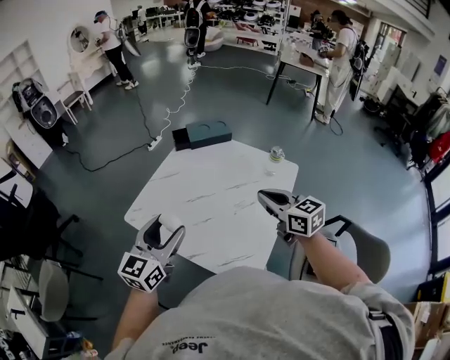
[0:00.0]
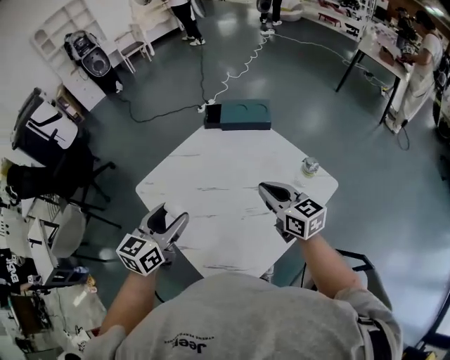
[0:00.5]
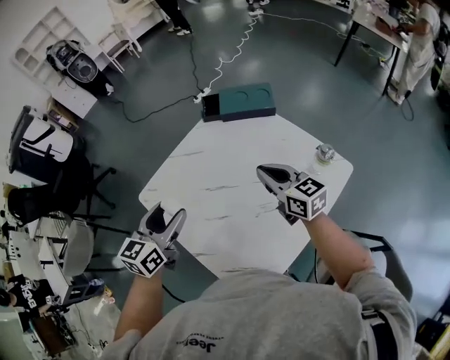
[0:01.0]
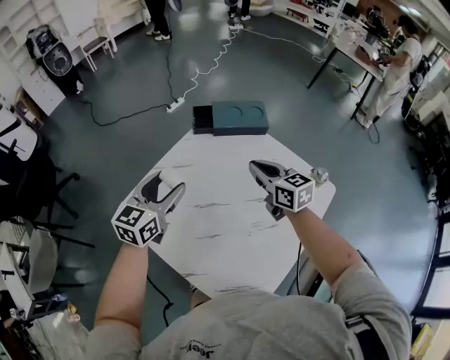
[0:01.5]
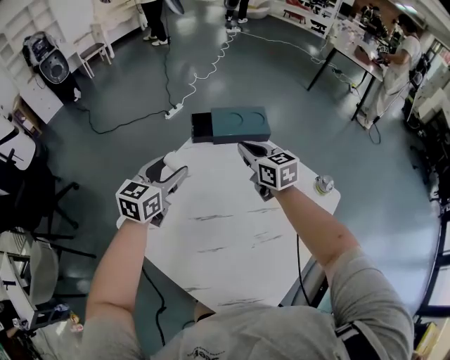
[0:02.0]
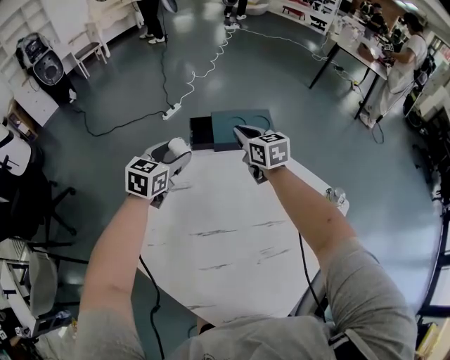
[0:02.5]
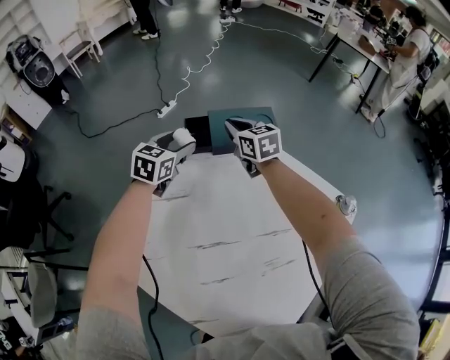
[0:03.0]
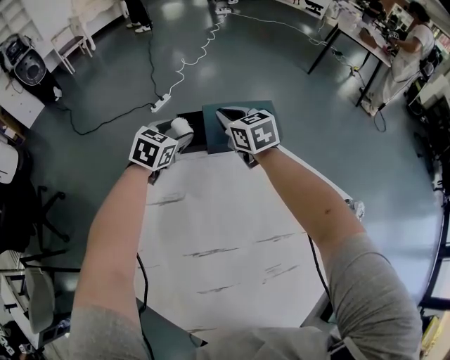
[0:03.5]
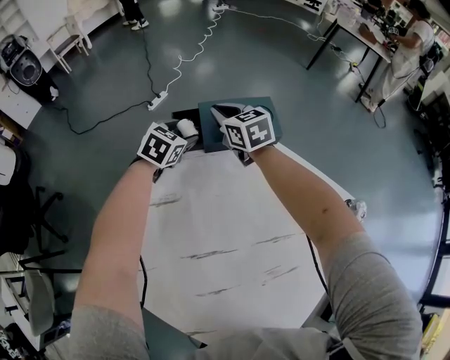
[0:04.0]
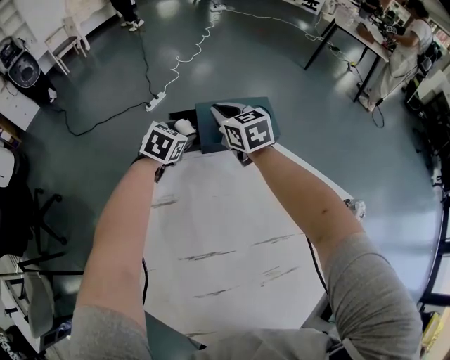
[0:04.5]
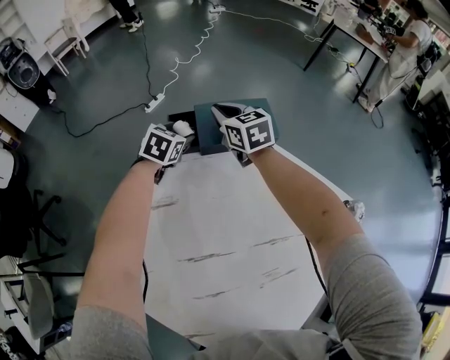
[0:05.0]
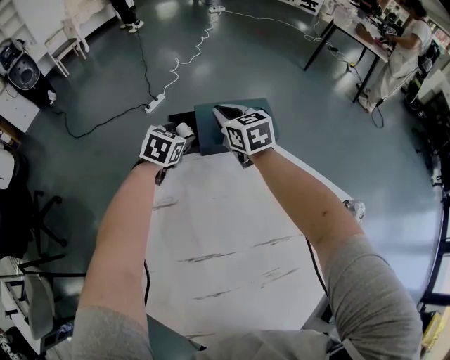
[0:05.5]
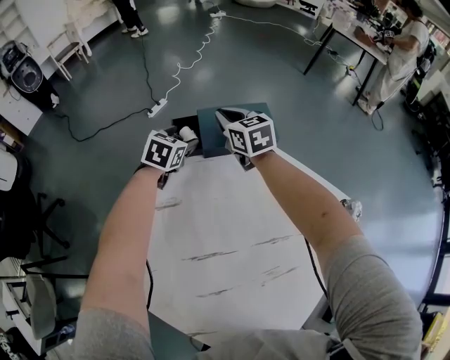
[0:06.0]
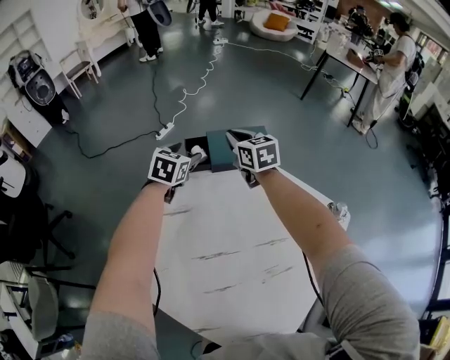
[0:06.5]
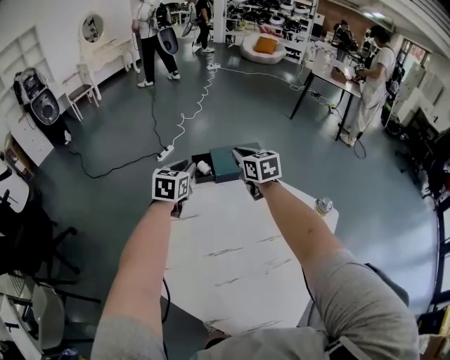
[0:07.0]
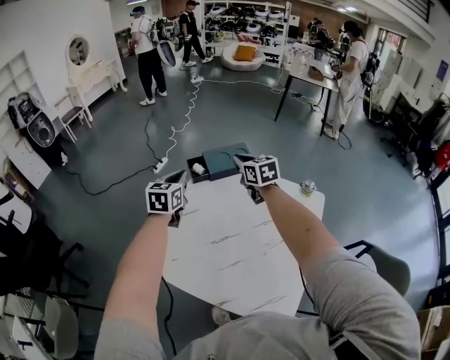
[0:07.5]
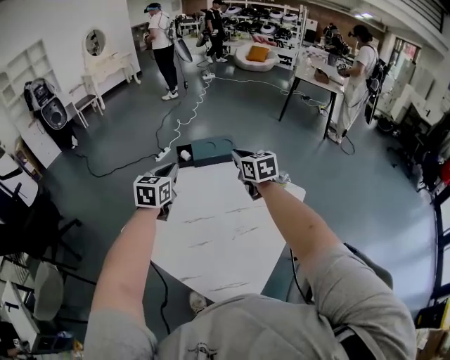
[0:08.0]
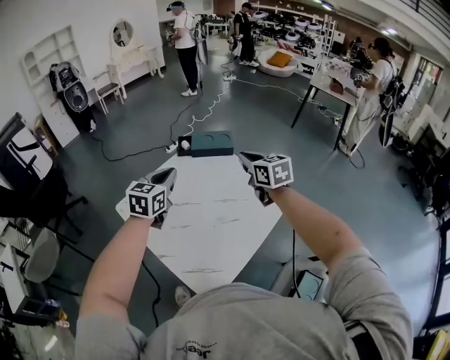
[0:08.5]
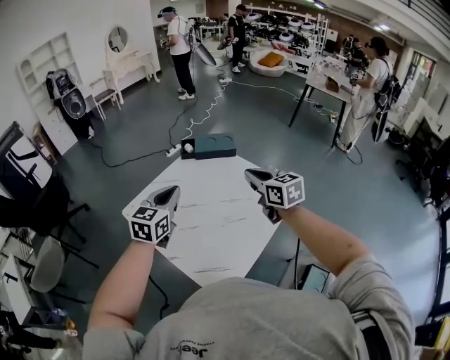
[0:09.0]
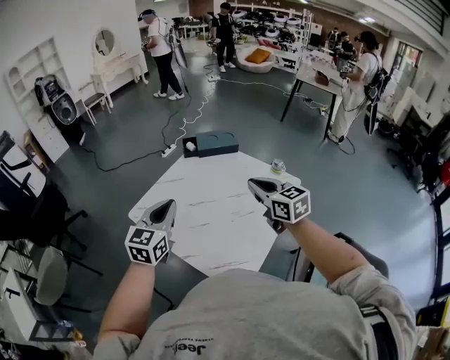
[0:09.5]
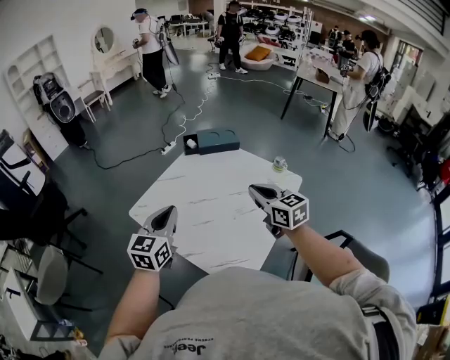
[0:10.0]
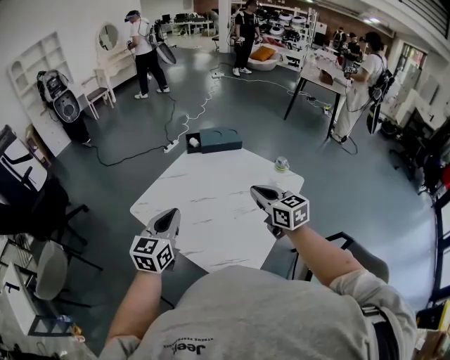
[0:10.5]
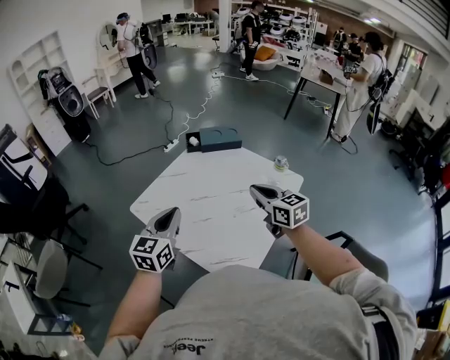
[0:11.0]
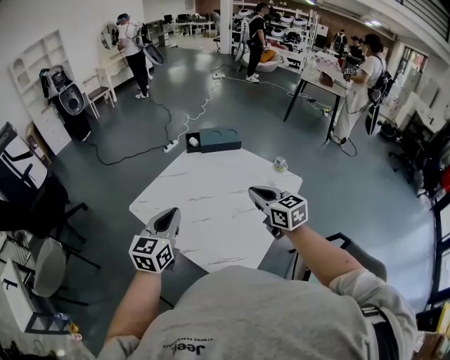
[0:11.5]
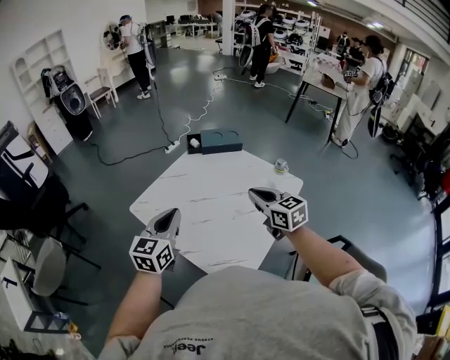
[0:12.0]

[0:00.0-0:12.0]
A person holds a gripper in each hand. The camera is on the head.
0:00.0 to 0:02.0: The two grippers go some 35 cm forward.
0:02.0 to 0:04.0: Both grippers move forward and downward, about 25 cm. The left gripper rotates roughly 30 degrees.
0:04.0 to 0:06.0: The grippers stay close to where they were, moving slightly.
0:06.0 to 0:08.0: The right gripper shifts roughly 35 cm backward, upward and to the right; the left gripper shifts about 40 cm backward and upward, rotates approximately 20 degrees, and closes.
0:08.0 to 0:10.0: The two grippers go roughly 25 cm backward.
0:10.0 to 0:12.0: The grippers make only small movements.

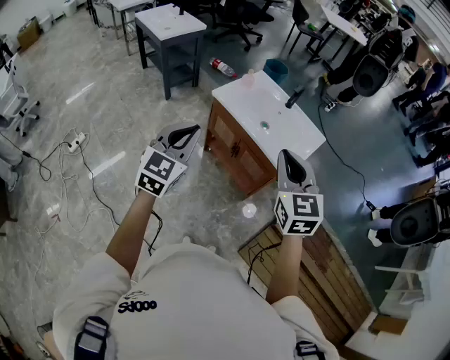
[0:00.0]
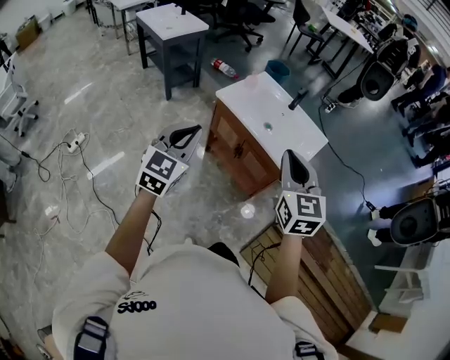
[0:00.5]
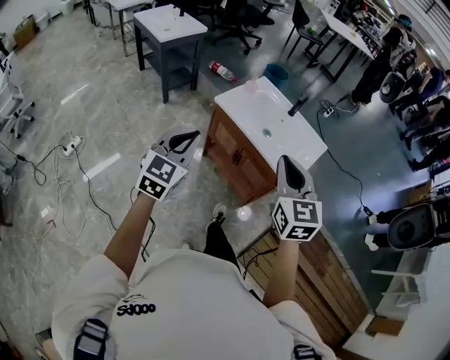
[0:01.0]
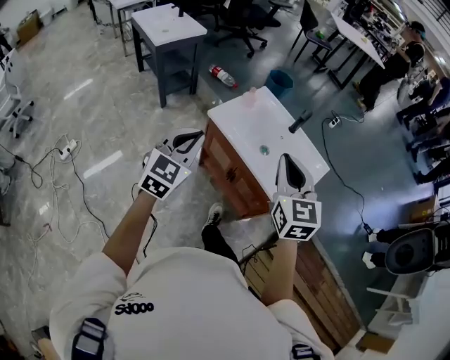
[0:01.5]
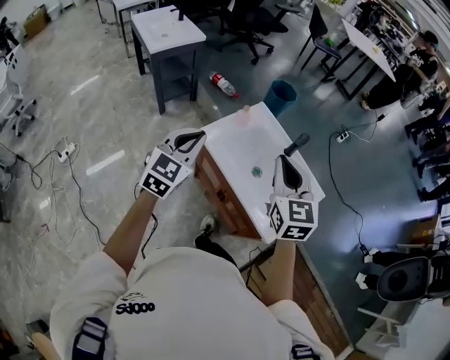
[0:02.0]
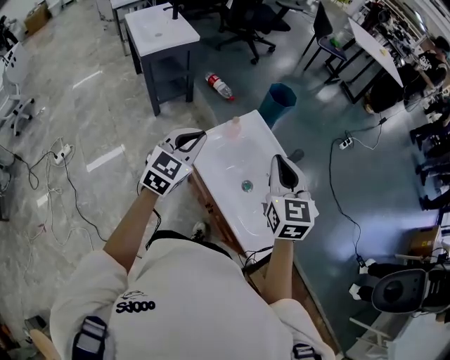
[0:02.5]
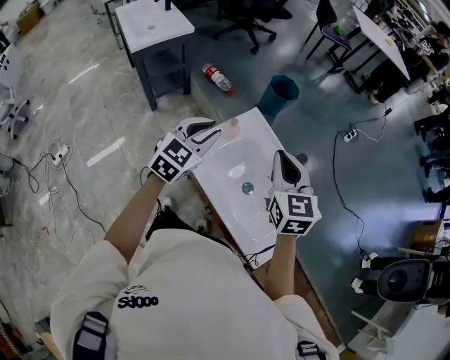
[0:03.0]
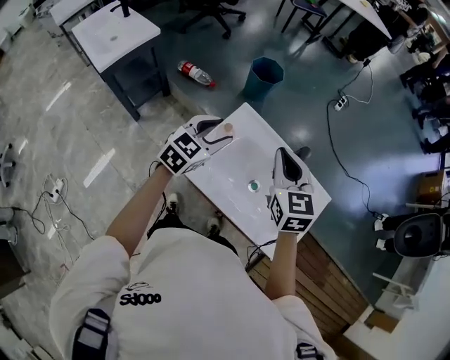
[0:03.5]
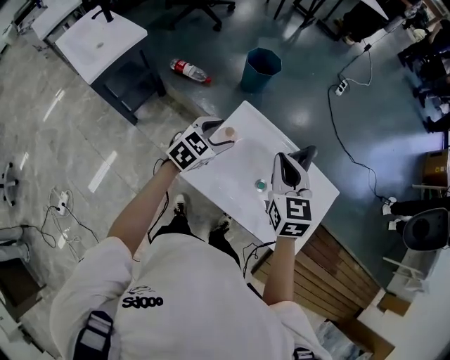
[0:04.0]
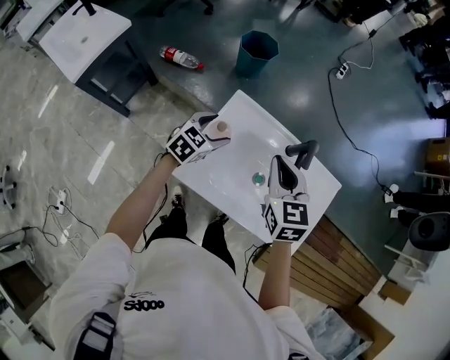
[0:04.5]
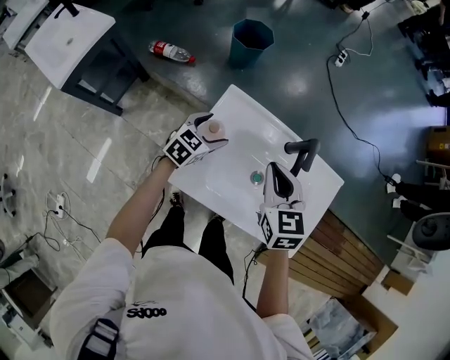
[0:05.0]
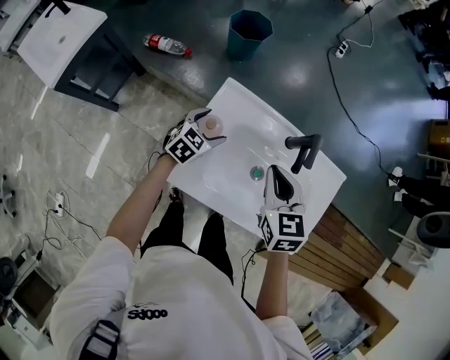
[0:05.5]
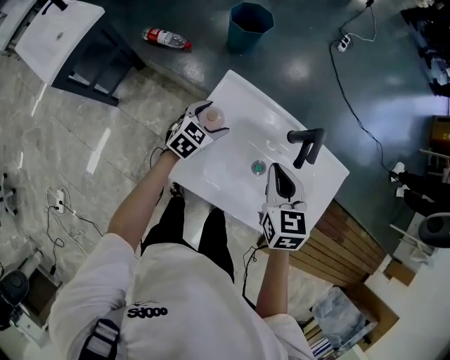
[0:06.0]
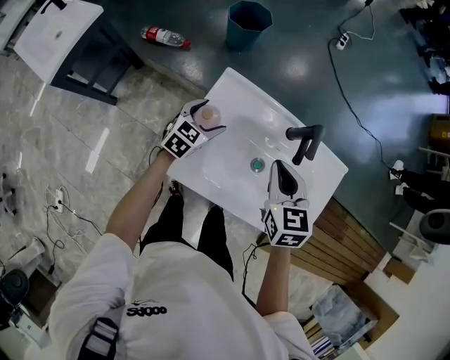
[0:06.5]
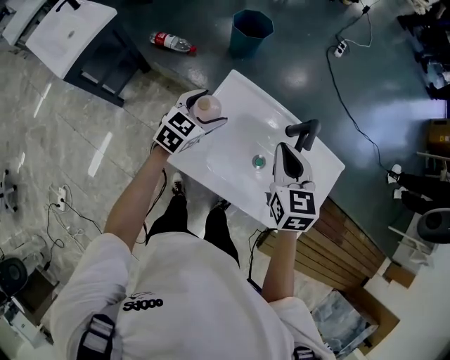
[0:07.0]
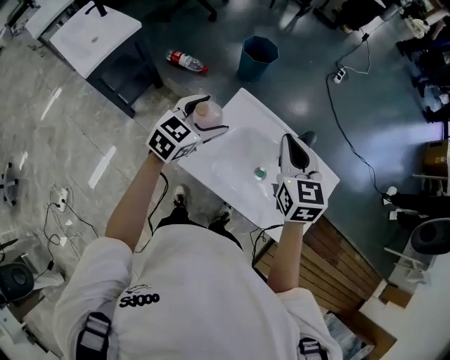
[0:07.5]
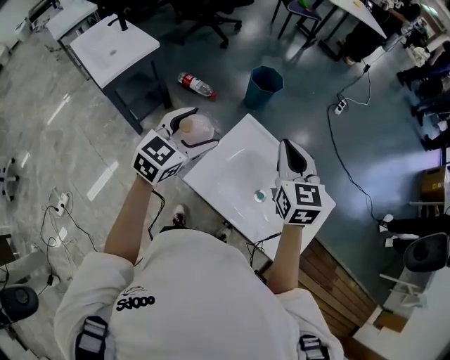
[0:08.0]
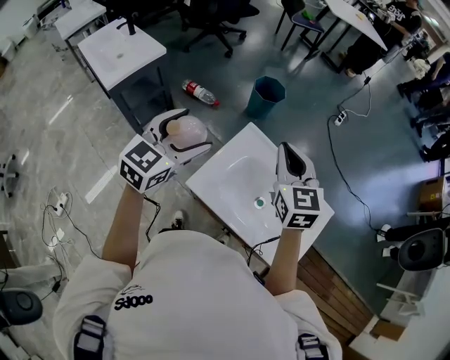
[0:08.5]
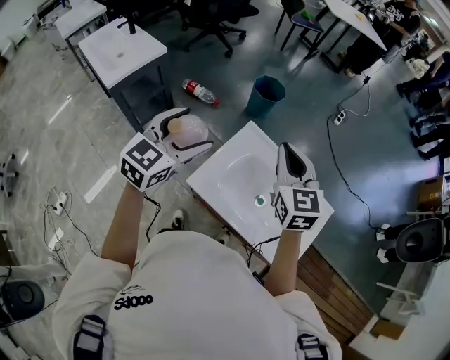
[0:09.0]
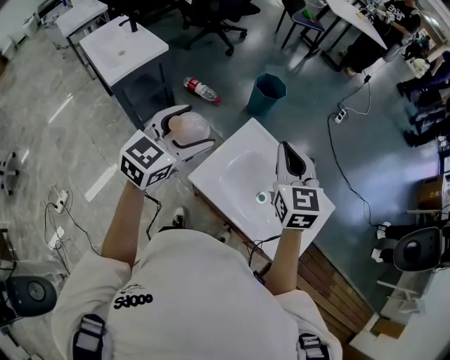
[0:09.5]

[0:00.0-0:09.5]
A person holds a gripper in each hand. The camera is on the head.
0:00.0 to 0:02.0: Both grippers move forward, about 30 cm.
0:02.0 to 0:04.0: The right gripper changes place by approximately 25 cm, and turns by about 20 degrees. Meanwhile the left gripper ends up roughly 35 cm from where it was, rotates roughly 40 degrees, and opens its fingers.
0:04.0 to 0:05.5: The right gripper is displaced downward by about 10 cm. The left gripper is displaced downward by some 15 cm.
0:05.5 to 0:07.5: The left gripper heads upward, covering roughly 20 cm. Meanwhile the right gripper shifts about 10 cm upward.
0:07.5 to 0:09.5: The right gripper goes some 10 cm upward and to the left, while the left gripper moves upward, to the left and backward, roughly 20 cm.

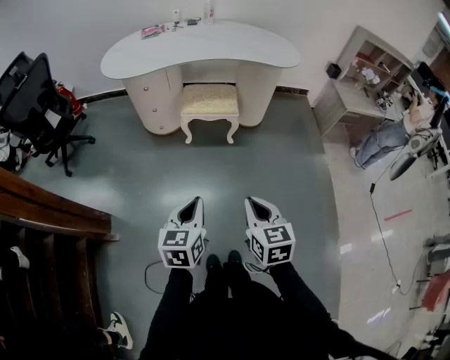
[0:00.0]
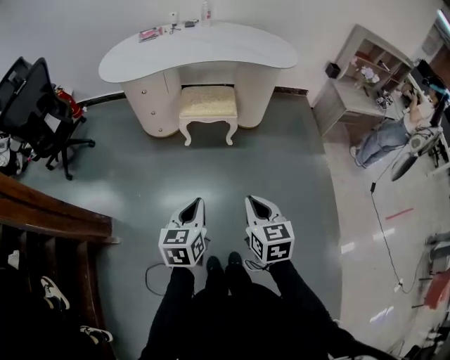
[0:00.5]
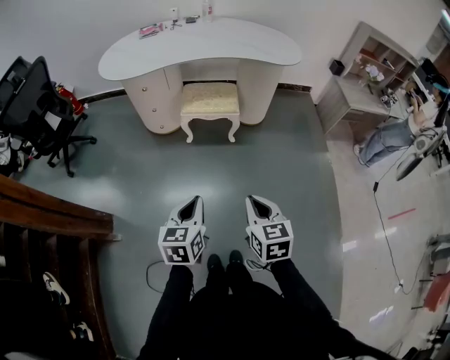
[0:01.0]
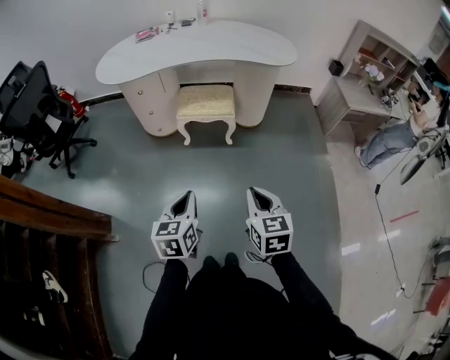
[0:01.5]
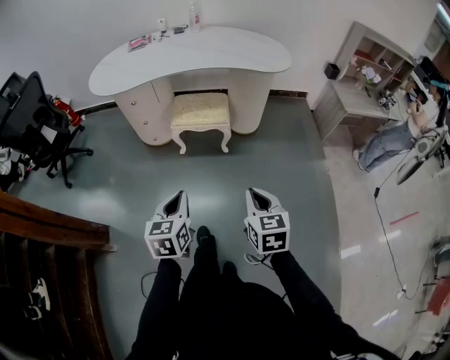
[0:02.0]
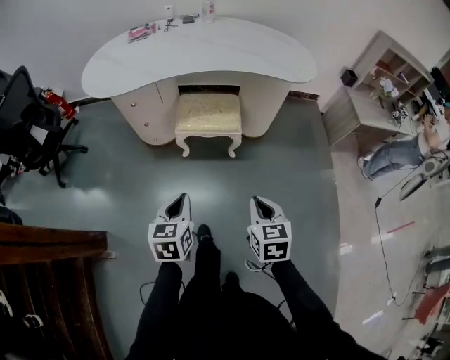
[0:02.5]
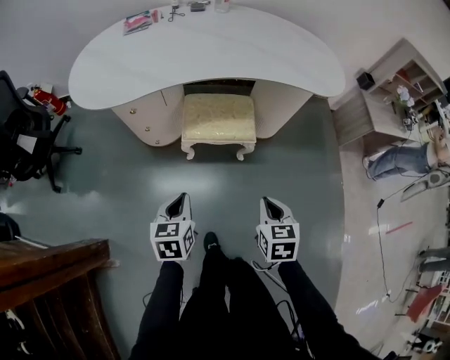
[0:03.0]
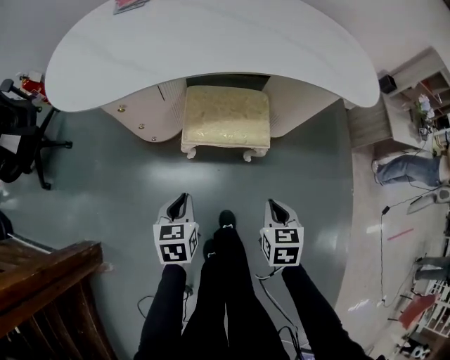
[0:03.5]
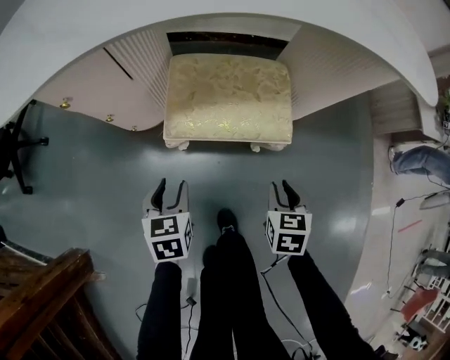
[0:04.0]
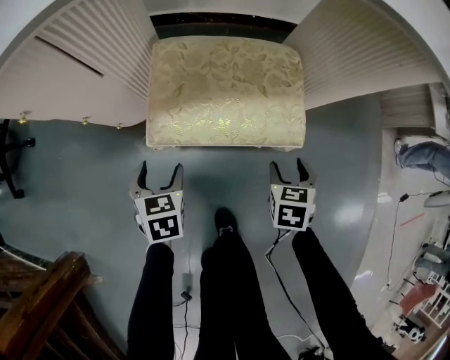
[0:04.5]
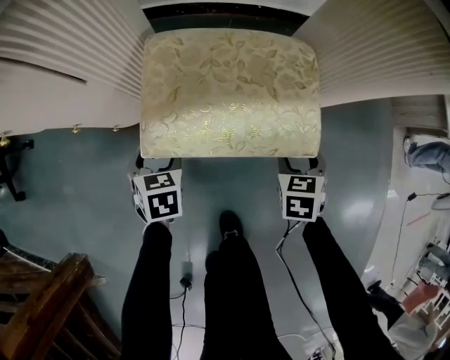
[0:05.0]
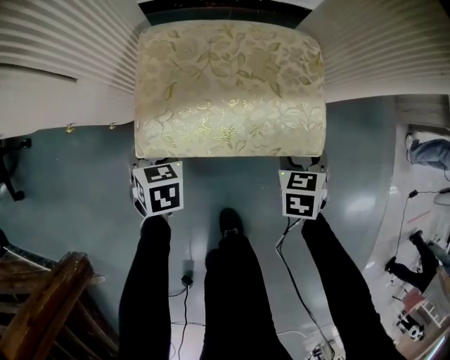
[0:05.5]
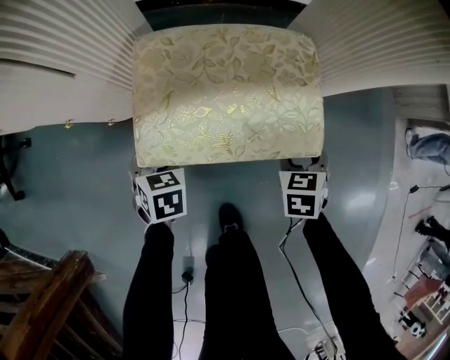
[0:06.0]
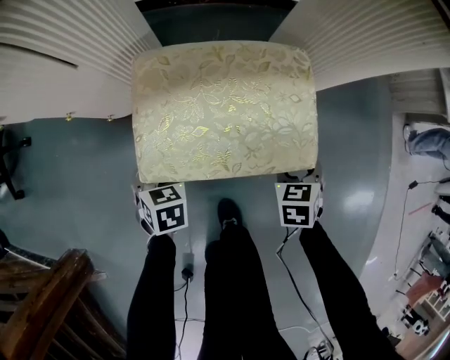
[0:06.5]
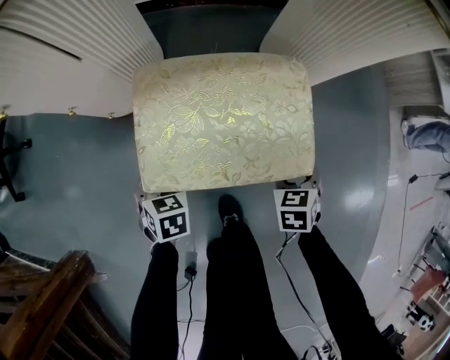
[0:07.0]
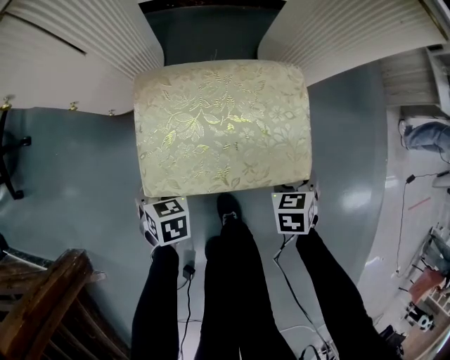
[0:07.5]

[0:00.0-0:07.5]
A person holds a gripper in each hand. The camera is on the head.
0:00.0 to 0:02.0: The left gripper moves forward, approximately 10 cm. Meanwhile the right gripper moves forward and to the right, about 10 cm.
0:02.0 to 0:04.0: The two grippers travel together, forward, roughly 40 cm. Both grippers travel together downward, about 35 cm. The right gripper rotates roughly 20 degrees, and opens up. The left gripper opens.
0:04.0 to 0:05.5: The right gripper goes roughly 20 cm forward and downward, and opens up, while the left gripper travels downward and forward by approximately 20 cm.
0:05.5 to 0:07.5: There are only small adjustments of the grippers.
